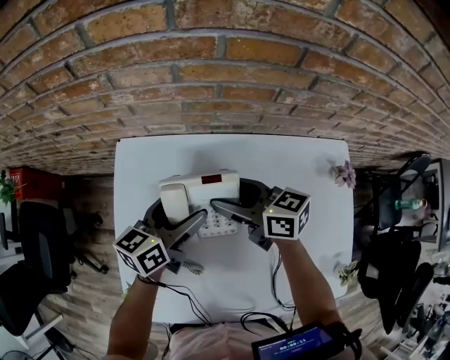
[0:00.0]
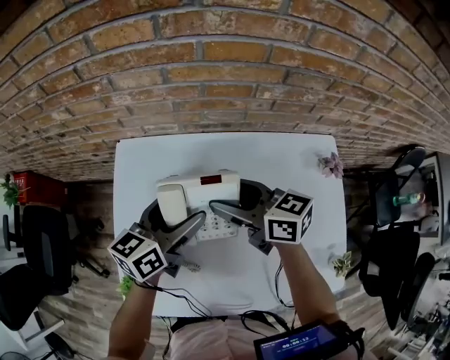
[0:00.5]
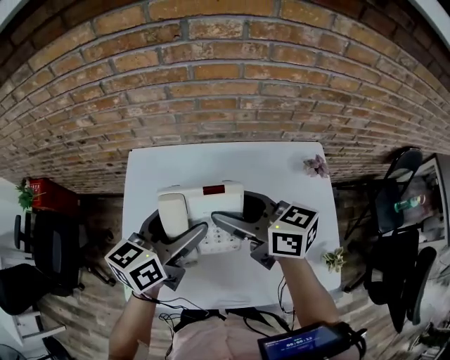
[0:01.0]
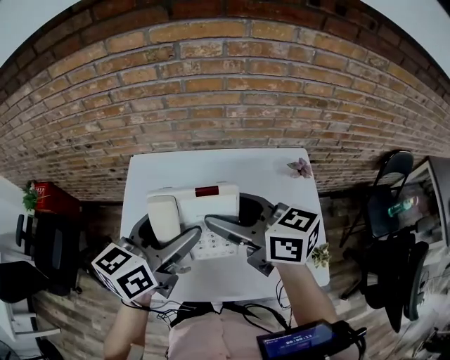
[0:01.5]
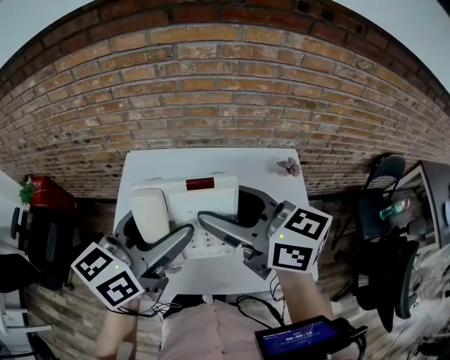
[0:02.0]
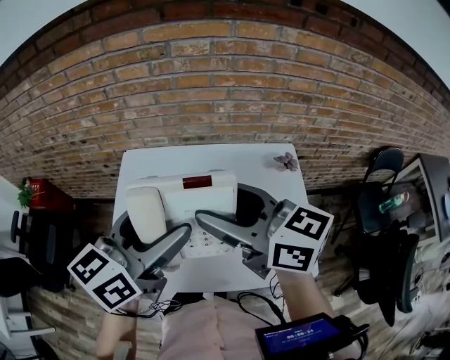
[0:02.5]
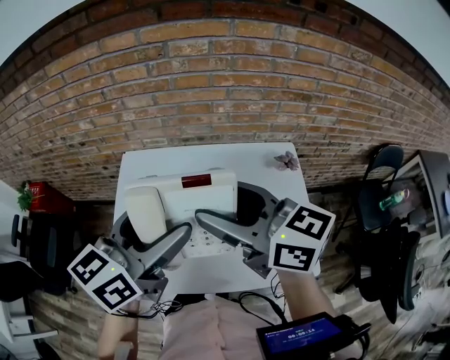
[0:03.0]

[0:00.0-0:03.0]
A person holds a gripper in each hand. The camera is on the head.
0:00.0 to 0:01.5: The two grippers go about 30 cm upward and backward.
0:01.5 to 0:03.0: Both grippers travel together upward, roughly 5 cm.

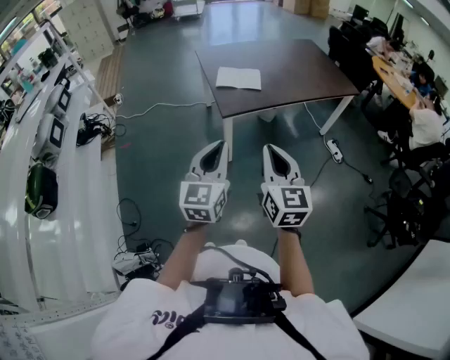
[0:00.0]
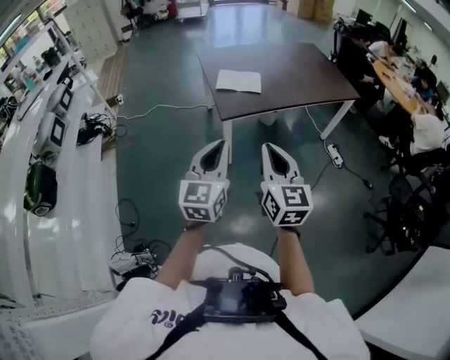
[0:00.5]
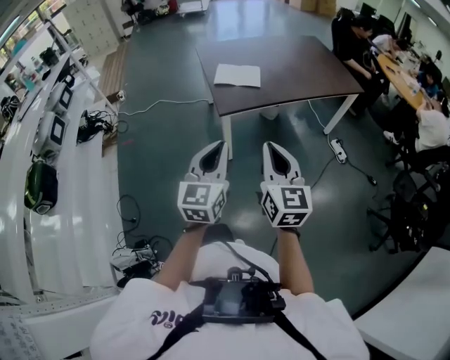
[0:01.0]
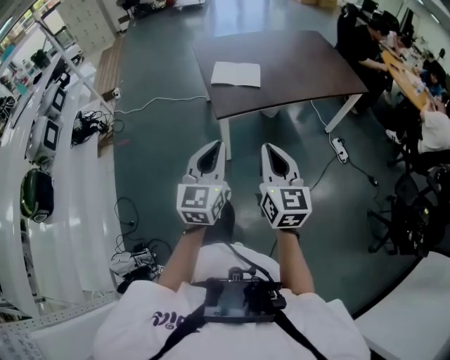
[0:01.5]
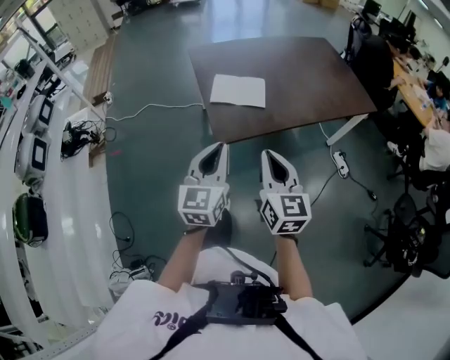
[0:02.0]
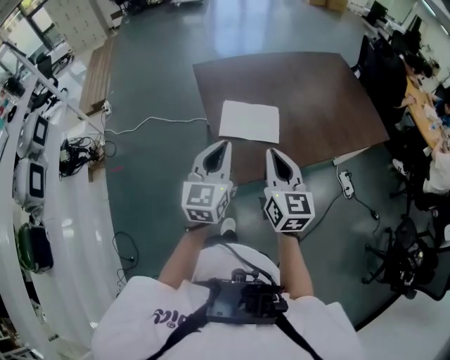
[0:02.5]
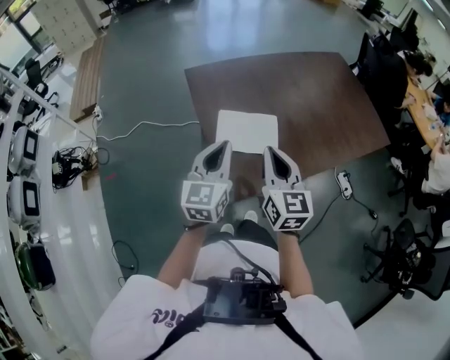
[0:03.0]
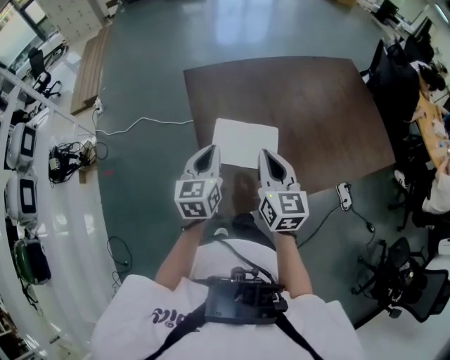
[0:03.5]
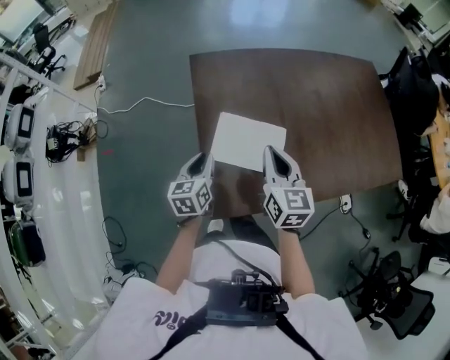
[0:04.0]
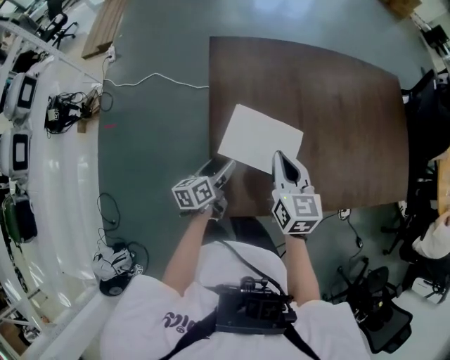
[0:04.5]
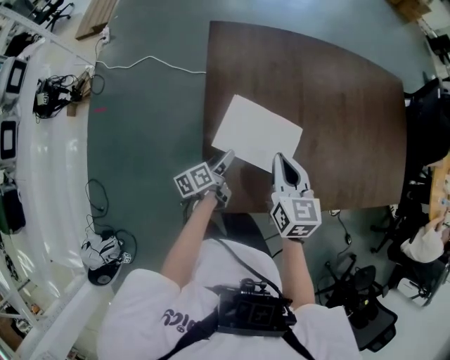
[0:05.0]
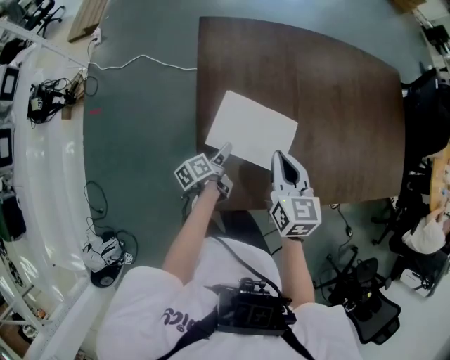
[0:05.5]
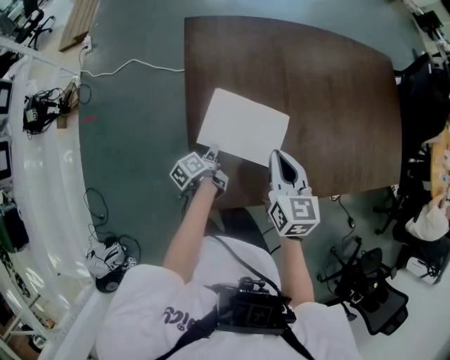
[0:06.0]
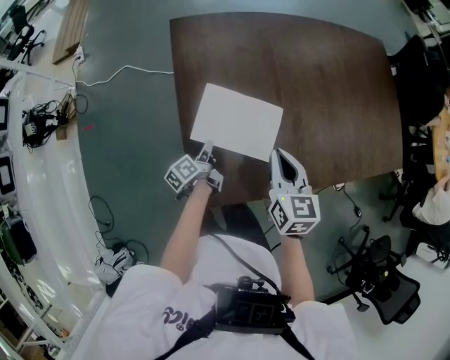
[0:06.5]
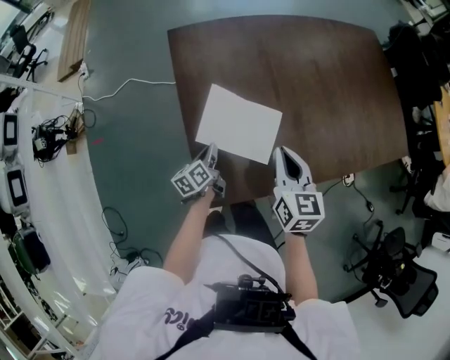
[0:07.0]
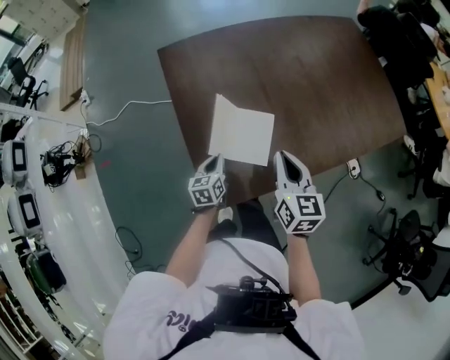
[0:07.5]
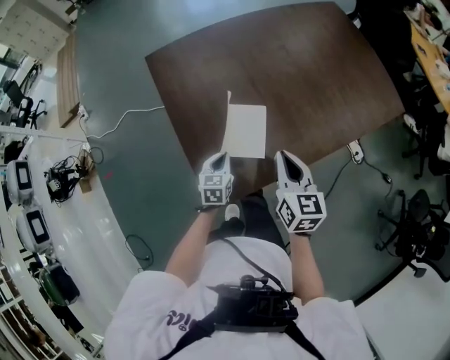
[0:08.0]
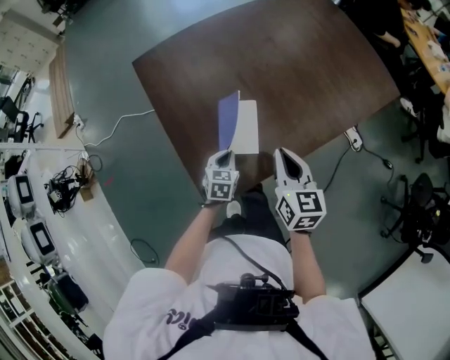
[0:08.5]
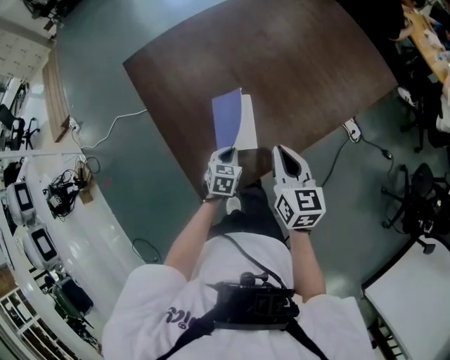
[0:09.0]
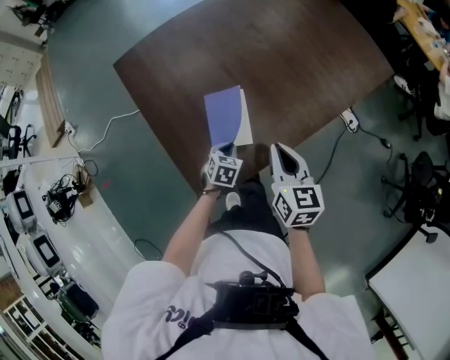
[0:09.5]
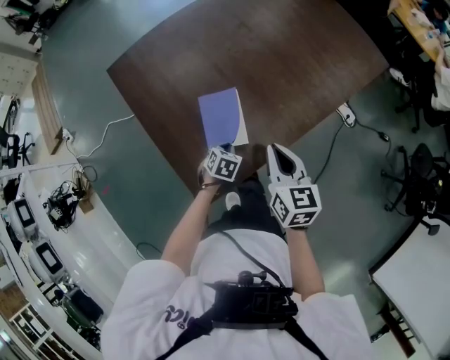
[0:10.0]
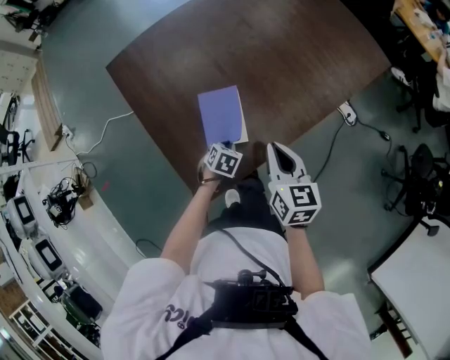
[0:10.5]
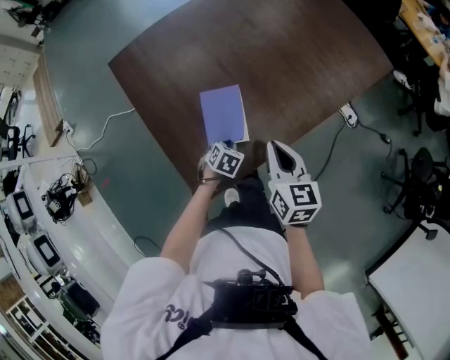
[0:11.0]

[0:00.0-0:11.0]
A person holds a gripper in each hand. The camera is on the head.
0:00.0 to 0:02.0: Both grippers travel together forward, some 30 cm.
0:02.0 to 0:03.5: Both grippers are carried forward, approximately 40 cm.
0:03.5 to 0:05.5: The right gripper heads downward and forward, covering roughly 15 cm, while the left gripper is displaced downward by approximately 30 cm, rolls counterclockwise, seen from behind, by some 70 degrees, and opens up.
0:05.5 to 0:07.5: The right gripper travels backward and to the right by approximately 10 cm, while the left gripper ends up about 5 cm from where it was, rotates around the line of its fingers by some 60 degrees, clockwise from behind, and closes its fingers.
0:07.5 to 0:09.0: The right gripper travels to the right by some 5 cm, while the left gripper is displaced to the right by some 10 cm, and changes its angle by about 40 degrees.
0:09.0 to 0:11.0: The left gripper shifts by about 5 cm, and turns by roughly 20 degrees.

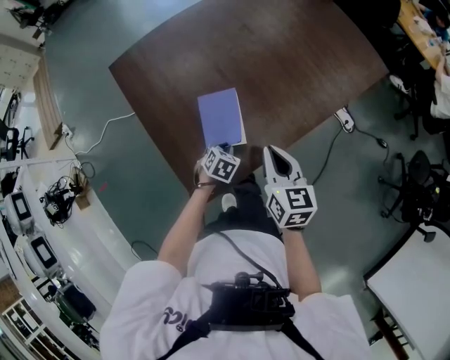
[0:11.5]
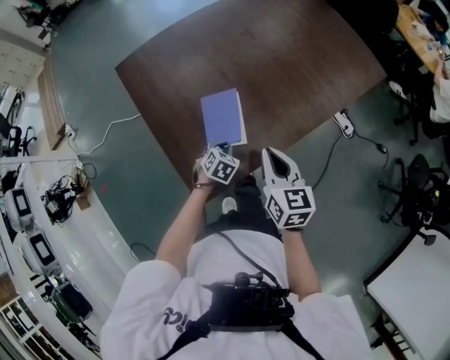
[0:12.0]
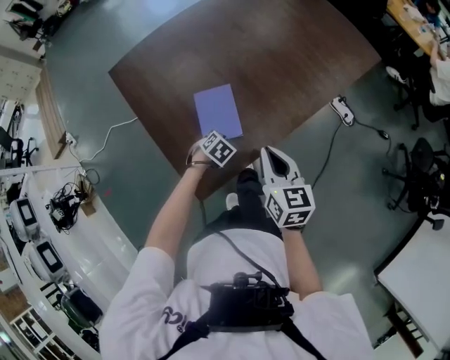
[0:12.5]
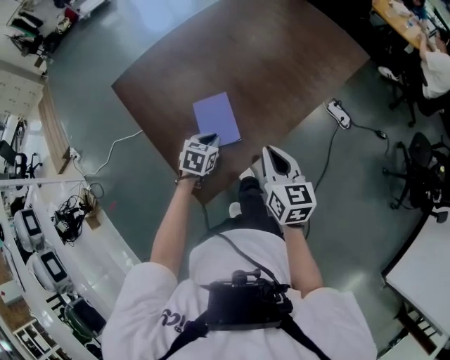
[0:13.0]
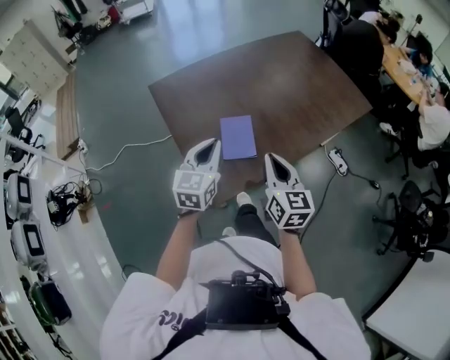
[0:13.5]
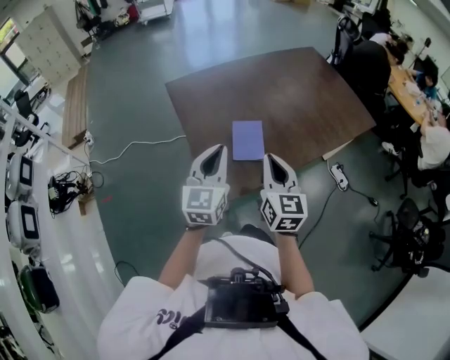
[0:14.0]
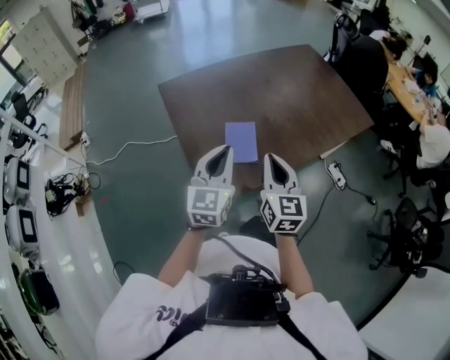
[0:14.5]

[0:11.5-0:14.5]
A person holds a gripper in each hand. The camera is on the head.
0:11.5 to 0:13.0: The right gripper changes place by about 5 cm, while the left gripper goes some 10 cm upward.
0:13.0 to 0:14.5: The right gripper goes roughly 15 cm upward, to the left and backward. Meanwhile the left gripper goes roughly 30 cm upward and backward, and tips its fingers upward by roughly 50 degrees.

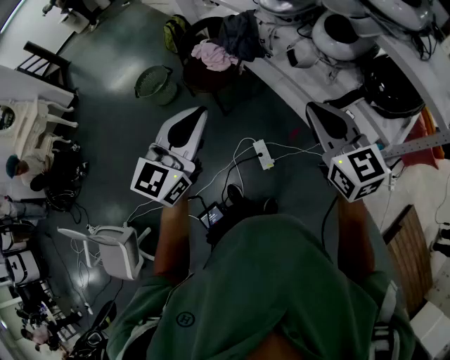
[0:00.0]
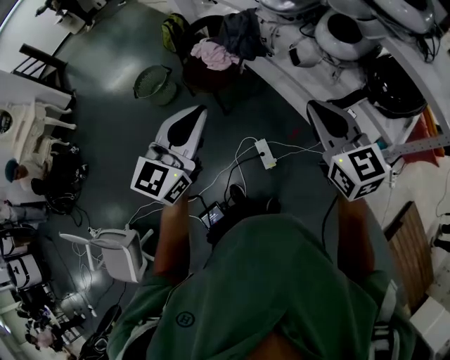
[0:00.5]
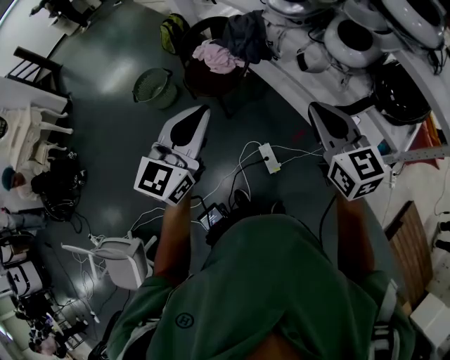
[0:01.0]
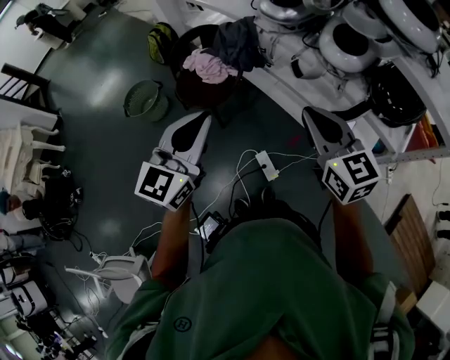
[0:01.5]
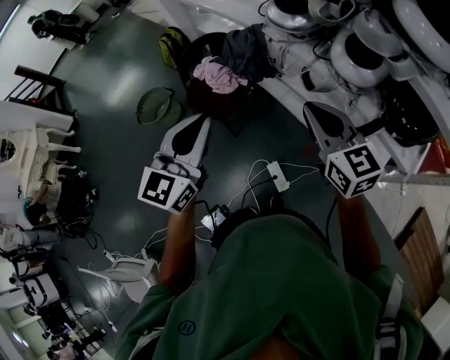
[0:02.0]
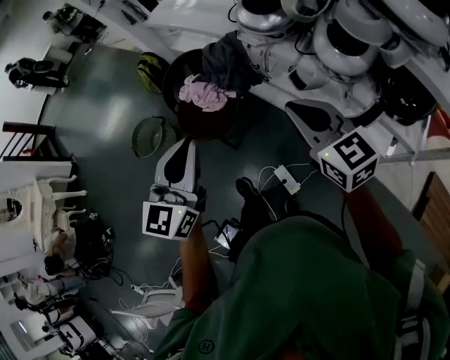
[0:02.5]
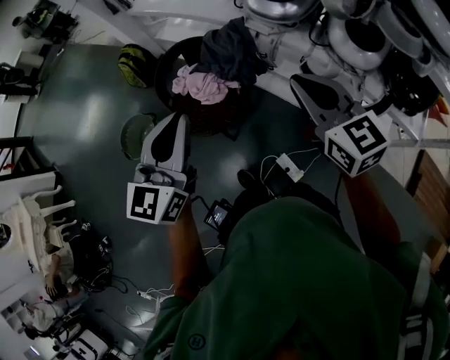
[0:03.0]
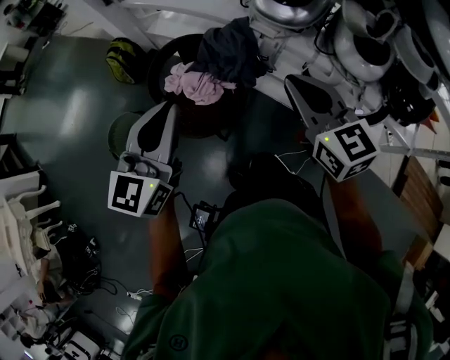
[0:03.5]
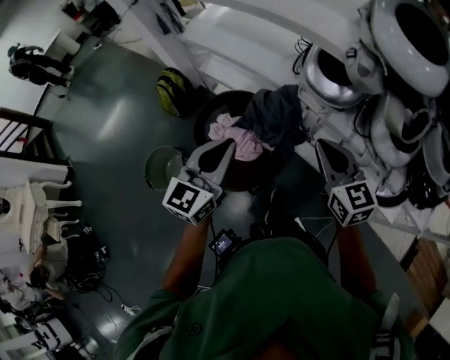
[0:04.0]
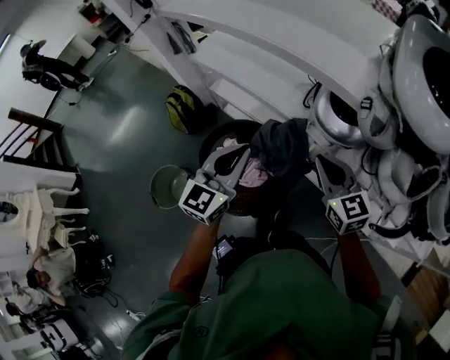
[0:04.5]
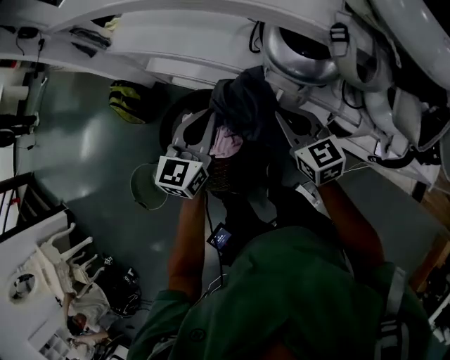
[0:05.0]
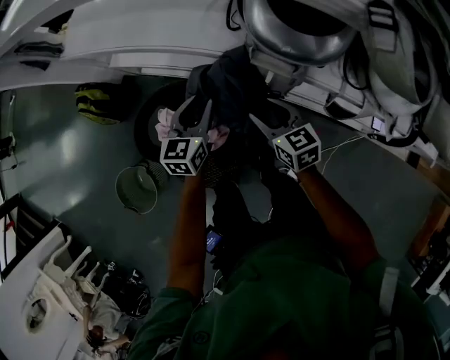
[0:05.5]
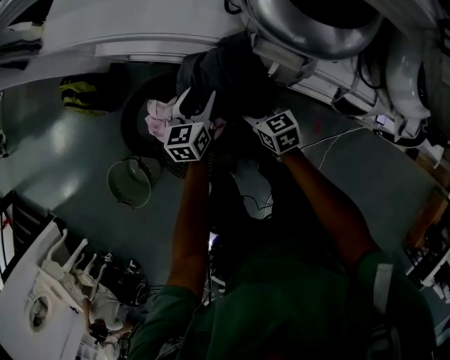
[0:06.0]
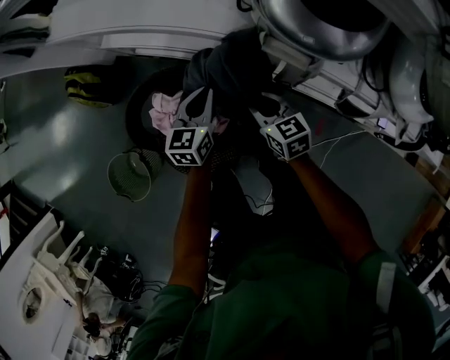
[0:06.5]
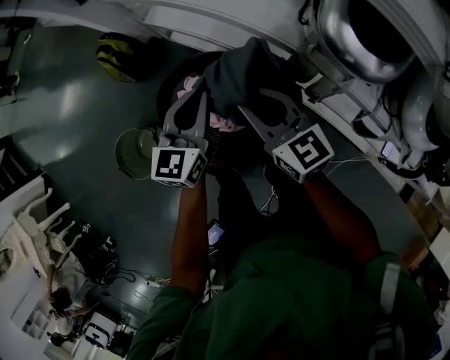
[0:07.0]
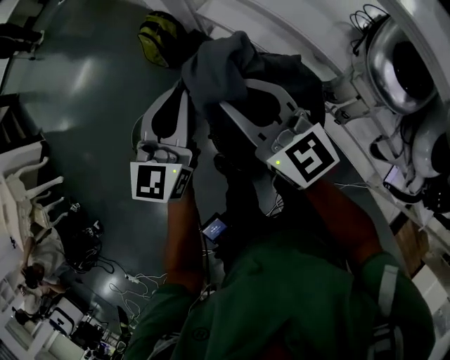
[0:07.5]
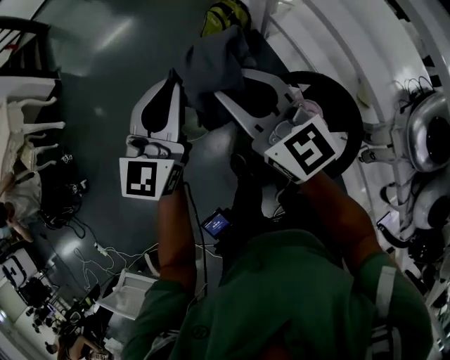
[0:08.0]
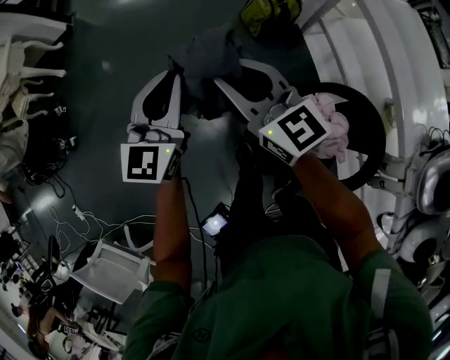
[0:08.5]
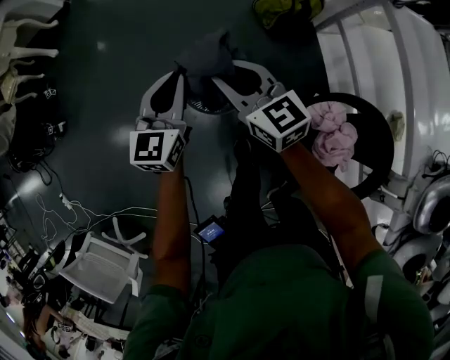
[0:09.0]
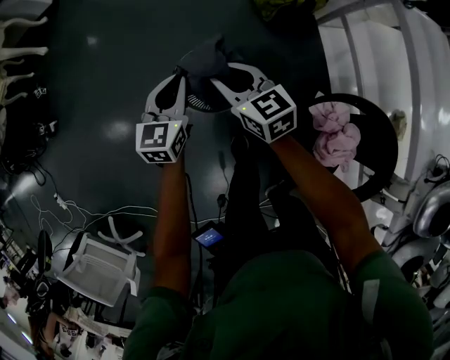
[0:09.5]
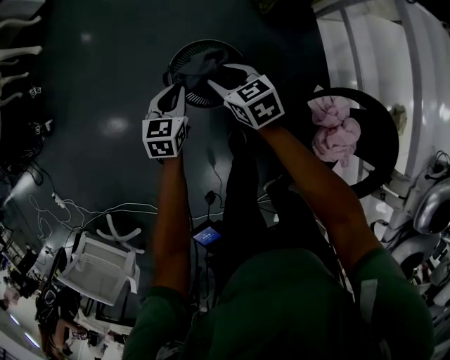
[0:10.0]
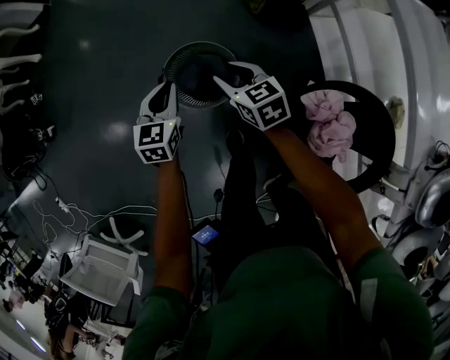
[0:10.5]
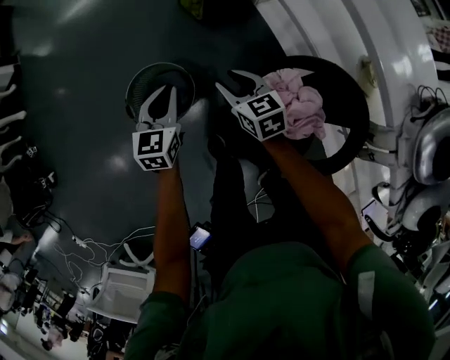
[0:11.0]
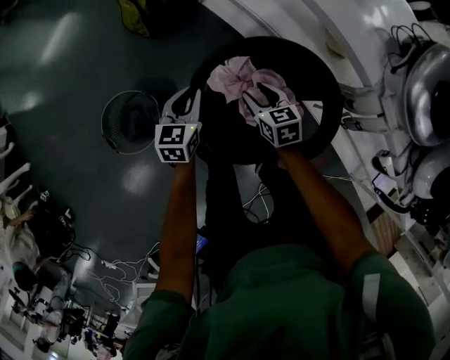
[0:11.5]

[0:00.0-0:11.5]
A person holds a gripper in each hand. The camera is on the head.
0:00.0 to 0:02.0: Both grippers move forward, about 20 cm.
0:02.0 to 0:04.0: The two grippers go roughly 35 cm forward and to the left.
0:04.0 to 0:06.0: The left gripper moves downward and forward, about 50 cm, changes its angle by about 30 degrees, and opens up; the right gripper travels downward by about 40 cm, changes its angle by roughly 30 degrees, and opens.
0:06.0 to 0:07.5: The two grippers go approximately 35 cm upward. The right gripper tips its fingers upward by some 40 degrees, and closes its fingers. The left gripper swivels some 40 degrees, and closes its fingers.
0:07.5 to 0:09.5: The pair of grippers is taken roughly 50 cm. The right gripper swivels about 40 degrees, while the left gripper turns by approximately 40 degrees.
0:09.5 to 0:11.5: Both grippers are carried some 50 cm. The left gripper swivels approximately 40 degrees, while the right gripper changes its angle by roughly 50 degrees.
